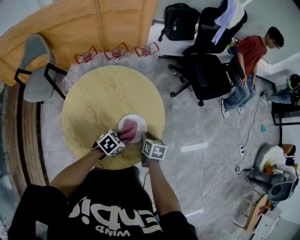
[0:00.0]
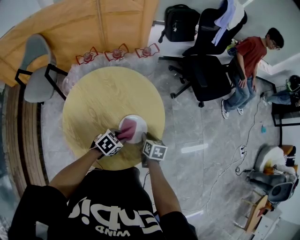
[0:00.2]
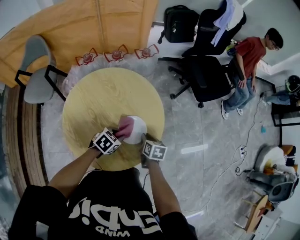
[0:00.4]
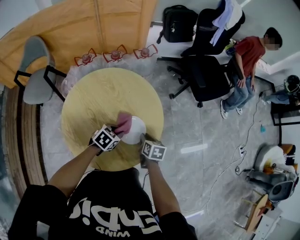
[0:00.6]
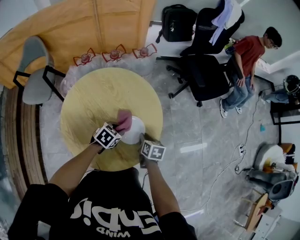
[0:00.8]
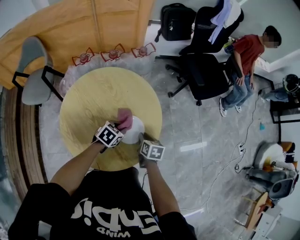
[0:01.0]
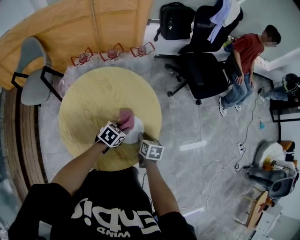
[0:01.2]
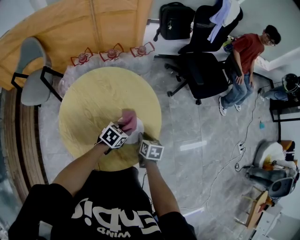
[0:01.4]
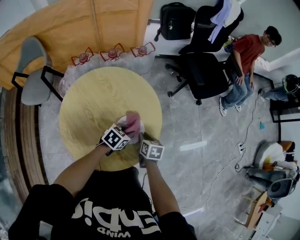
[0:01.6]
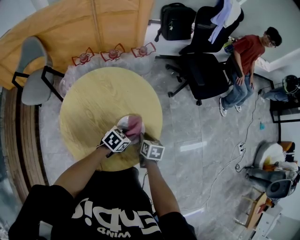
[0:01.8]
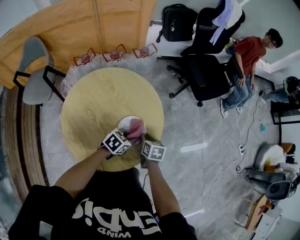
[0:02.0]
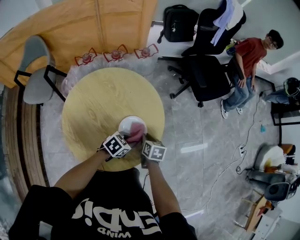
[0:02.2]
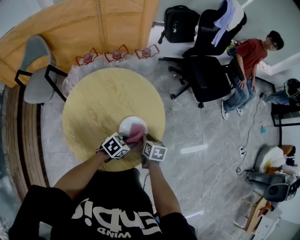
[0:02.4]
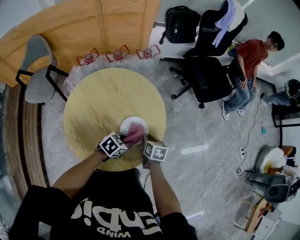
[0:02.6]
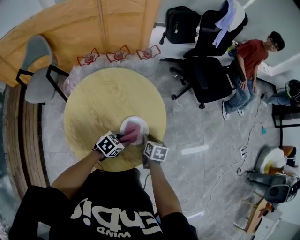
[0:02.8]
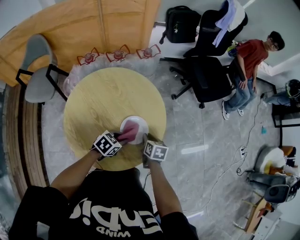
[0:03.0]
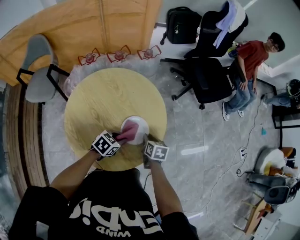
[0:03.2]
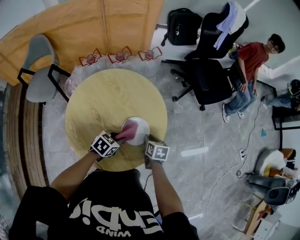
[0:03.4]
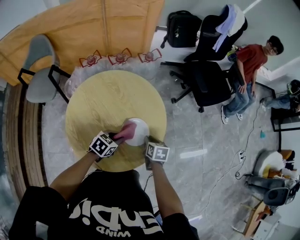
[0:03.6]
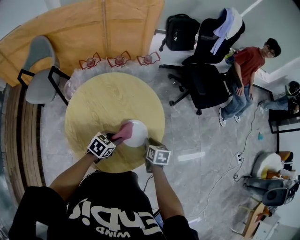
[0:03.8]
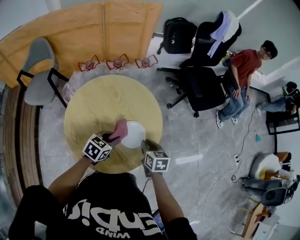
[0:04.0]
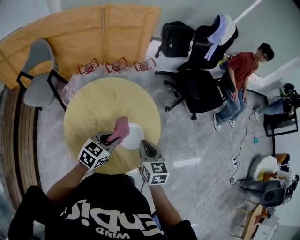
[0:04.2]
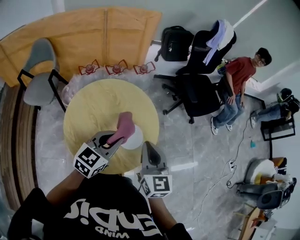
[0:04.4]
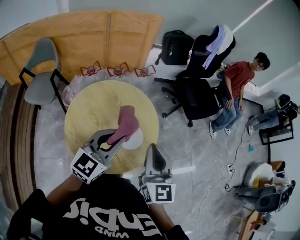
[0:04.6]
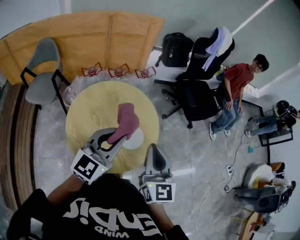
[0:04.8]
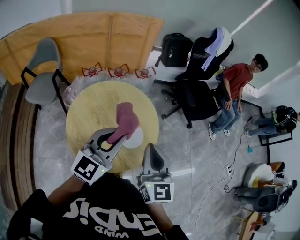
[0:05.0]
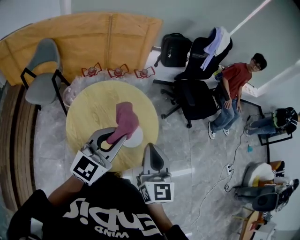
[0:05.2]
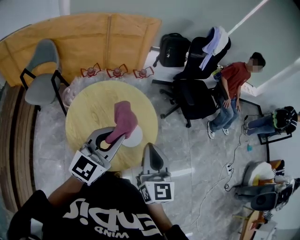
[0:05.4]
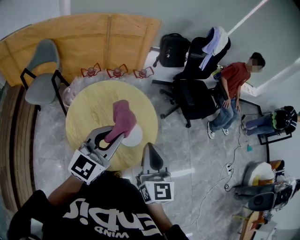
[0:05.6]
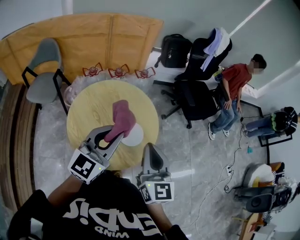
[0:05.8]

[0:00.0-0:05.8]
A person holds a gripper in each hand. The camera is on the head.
0:00.0 to 0:01.4: The left gripper shifts roughly 5 cm forward.
0:01.4 to 0:02.8: The left gripper travels backward by approximately 5 cm.
0:02.8 to 0:04.4: The two grippers go approximately 25 cm upward. The left gripper turns by some 40 degrees. The right gripper tilts its fingers some 40 degrees upward.
0:04.4 to 0:05.8: The right gripper heads upward and backward, covering roughly 10 cm. Meanwhile the left gripper travels upward by some 10 cm, and changes its angle by approximately 20 degrees.

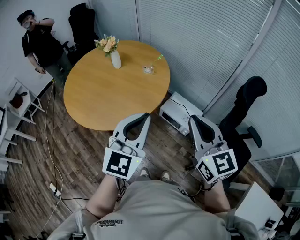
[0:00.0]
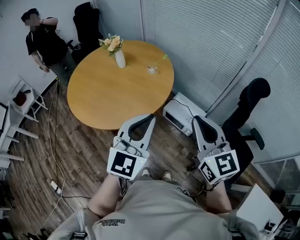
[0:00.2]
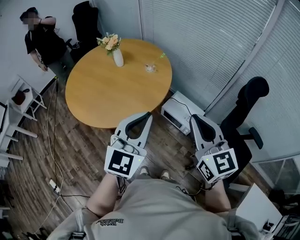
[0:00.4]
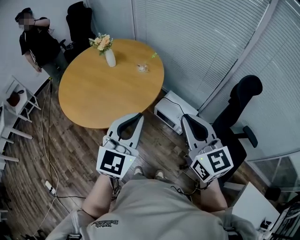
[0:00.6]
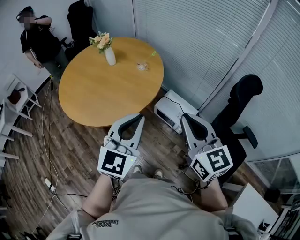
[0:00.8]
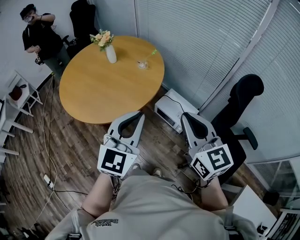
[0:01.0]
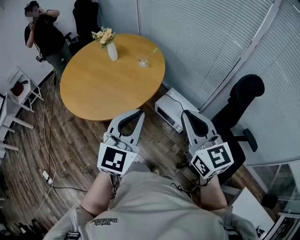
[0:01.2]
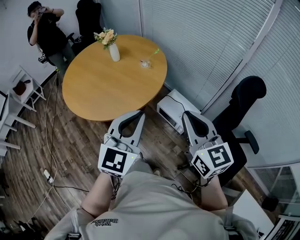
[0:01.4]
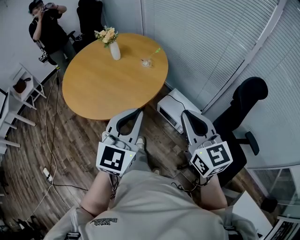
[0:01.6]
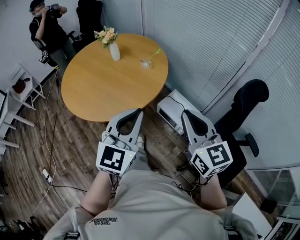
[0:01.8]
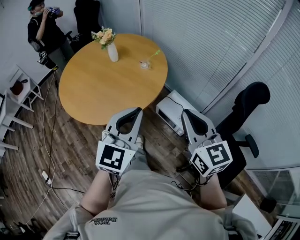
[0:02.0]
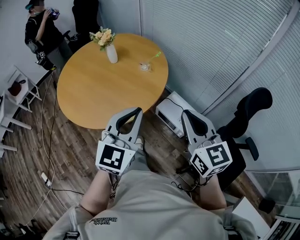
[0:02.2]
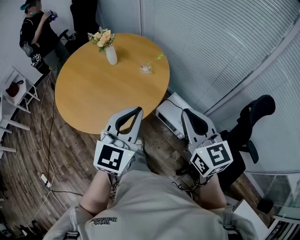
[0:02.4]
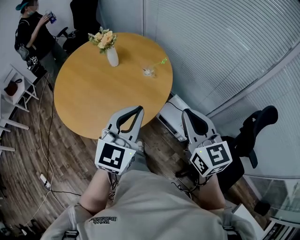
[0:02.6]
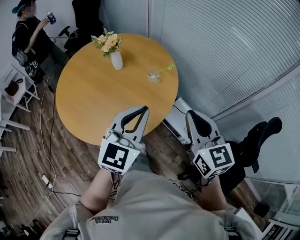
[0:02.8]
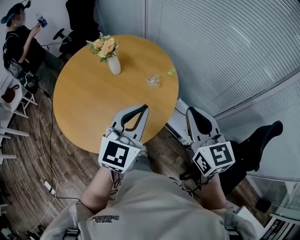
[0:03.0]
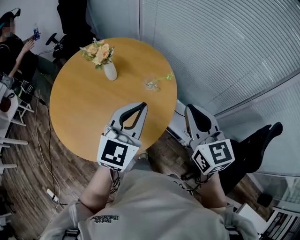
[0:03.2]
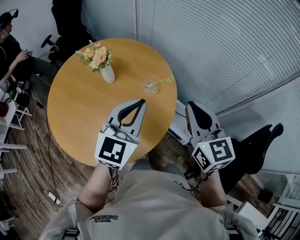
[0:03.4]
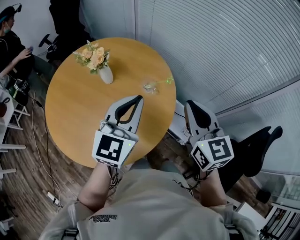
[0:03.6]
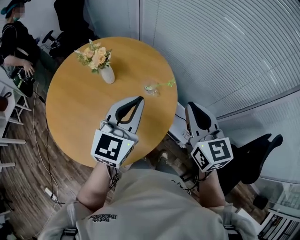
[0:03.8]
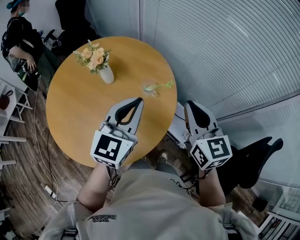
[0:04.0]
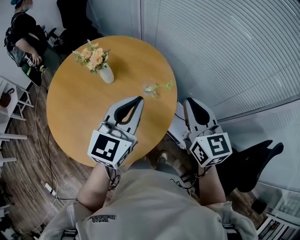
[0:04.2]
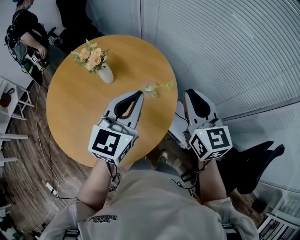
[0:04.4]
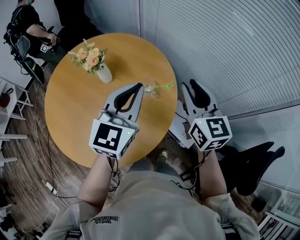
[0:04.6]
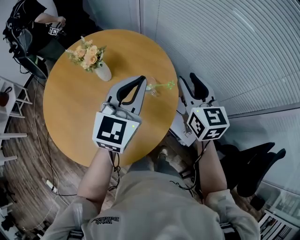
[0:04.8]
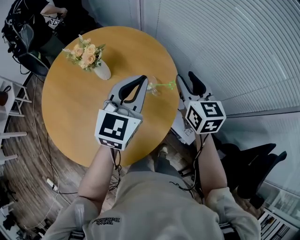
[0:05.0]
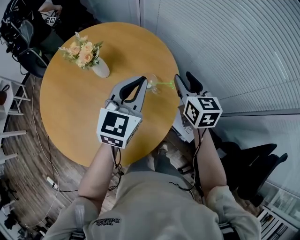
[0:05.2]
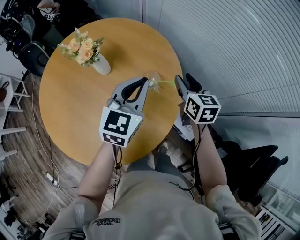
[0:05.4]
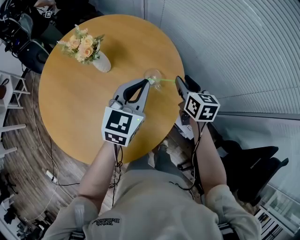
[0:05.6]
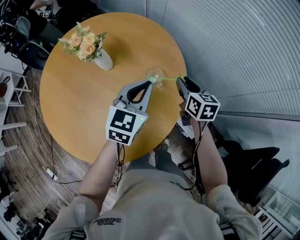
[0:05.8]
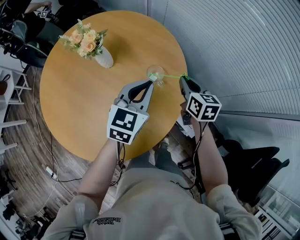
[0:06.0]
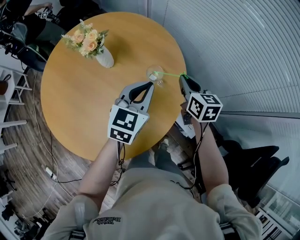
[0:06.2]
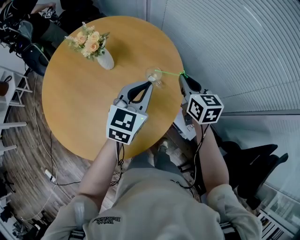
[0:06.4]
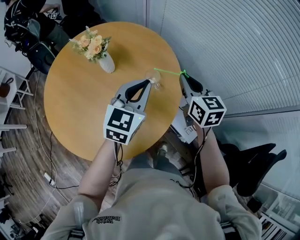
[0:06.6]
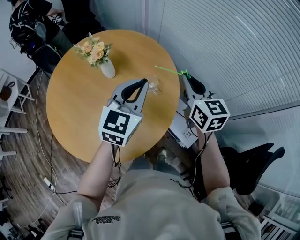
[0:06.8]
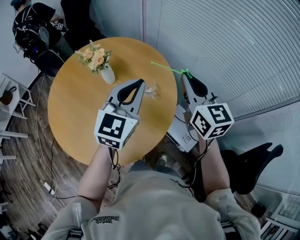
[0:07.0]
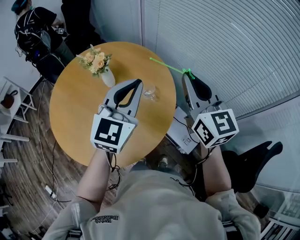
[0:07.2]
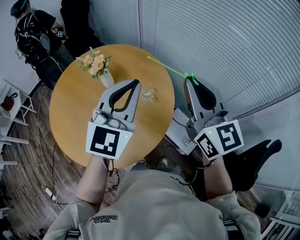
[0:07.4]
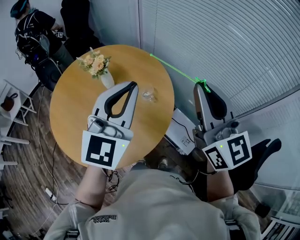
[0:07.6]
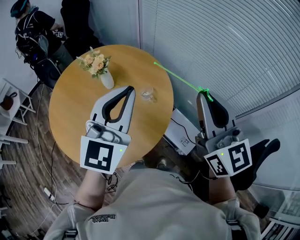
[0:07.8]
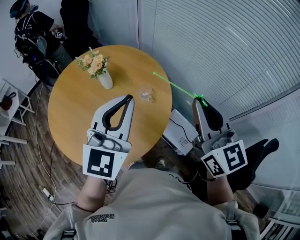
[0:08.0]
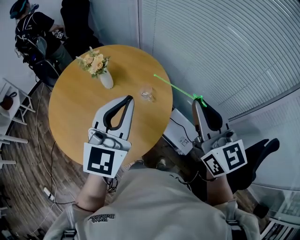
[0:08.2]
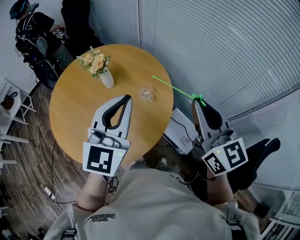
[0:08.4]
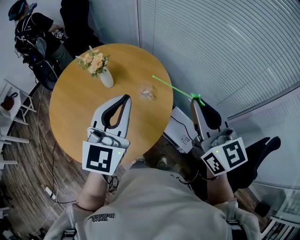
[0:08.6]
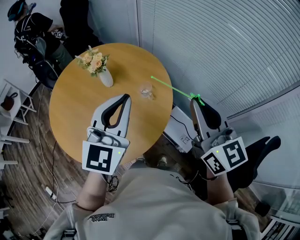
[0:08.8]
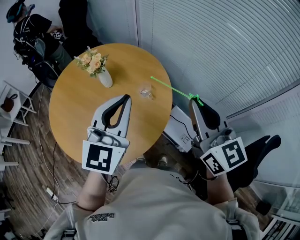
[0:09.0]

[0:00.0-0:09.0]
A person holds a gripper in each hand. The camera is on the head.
0:00.0 to 0:01.6: Both grippers move to the right, about 5 cm.
0:01.6 to 0:03.0: The two grippers go approximately 25 cm forward.
0:03.0 to 0:04.4: The two grippers go some 15 cm forward.
0:04.4 to 0:06.0: The two grippers go about 20 cm downward and forward. The right gripper rotates roughly 30 degrees, and opens, then closes once more.
0:06.0 to 0:07.6: The grippers both shift upward and backward by approximately 35 cm. The left gripper swivels approximately 30 degrees. The right gripper tilts its fingers approximately 40 degrees upward.
0:07.6 to 0:09.0: The right gripper shifts some 5 cm downward.

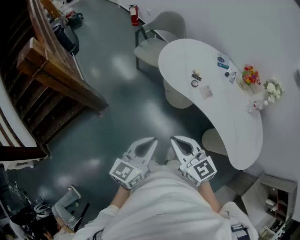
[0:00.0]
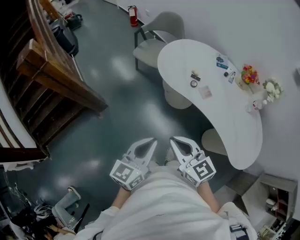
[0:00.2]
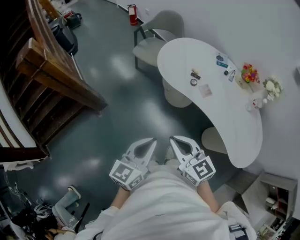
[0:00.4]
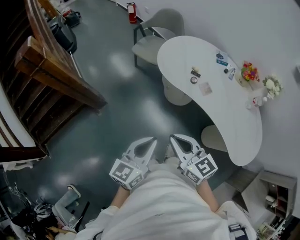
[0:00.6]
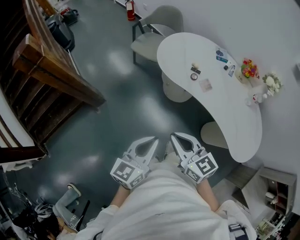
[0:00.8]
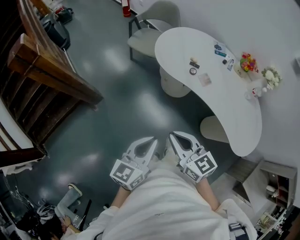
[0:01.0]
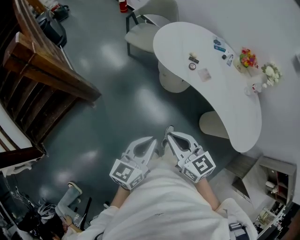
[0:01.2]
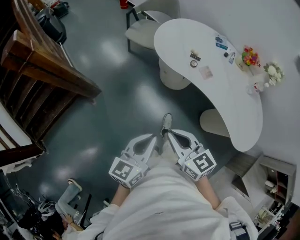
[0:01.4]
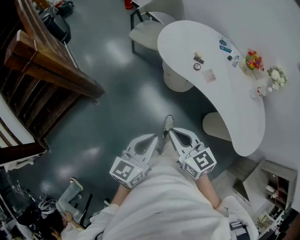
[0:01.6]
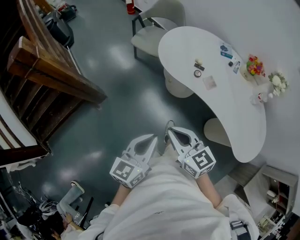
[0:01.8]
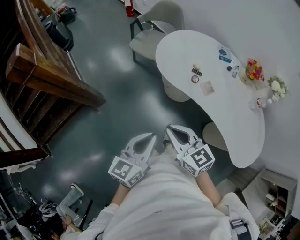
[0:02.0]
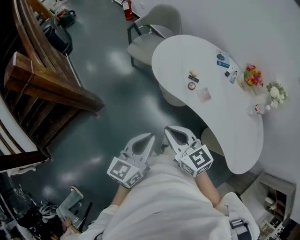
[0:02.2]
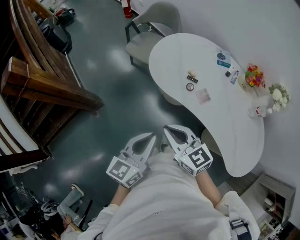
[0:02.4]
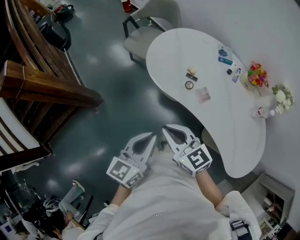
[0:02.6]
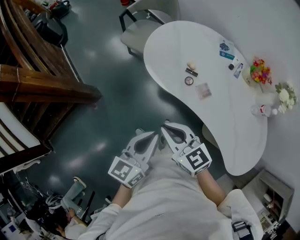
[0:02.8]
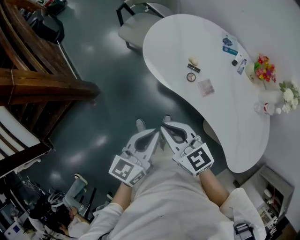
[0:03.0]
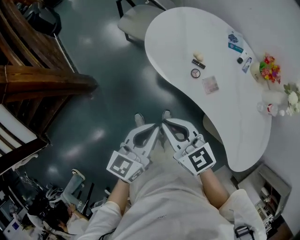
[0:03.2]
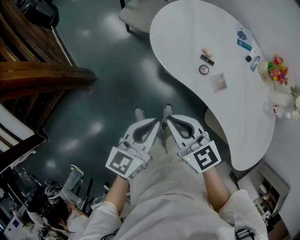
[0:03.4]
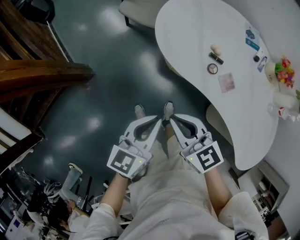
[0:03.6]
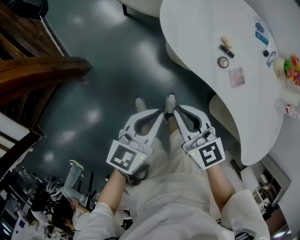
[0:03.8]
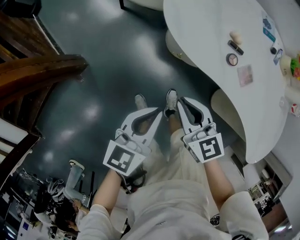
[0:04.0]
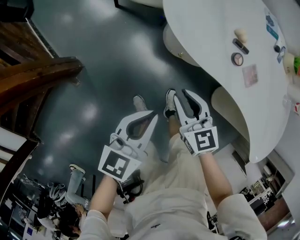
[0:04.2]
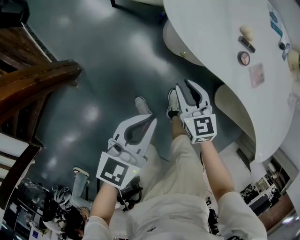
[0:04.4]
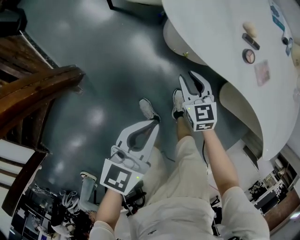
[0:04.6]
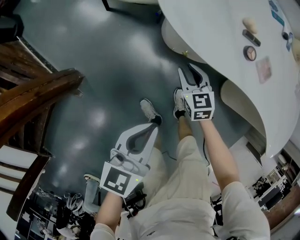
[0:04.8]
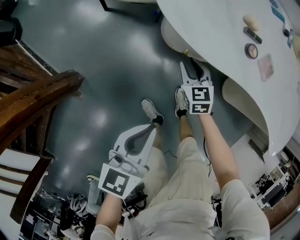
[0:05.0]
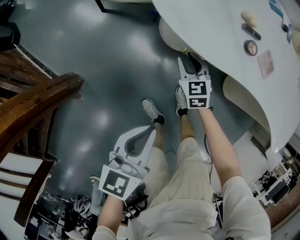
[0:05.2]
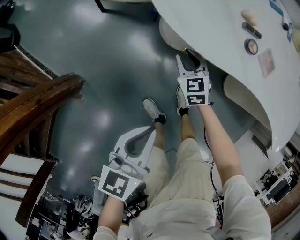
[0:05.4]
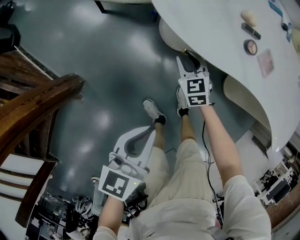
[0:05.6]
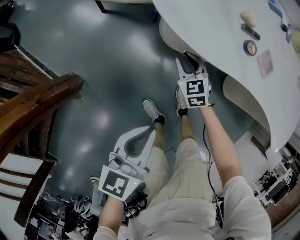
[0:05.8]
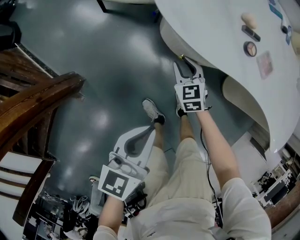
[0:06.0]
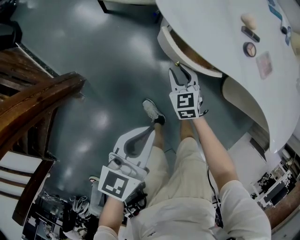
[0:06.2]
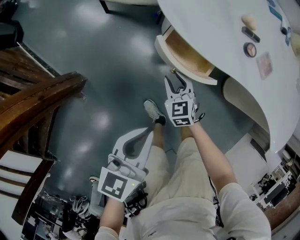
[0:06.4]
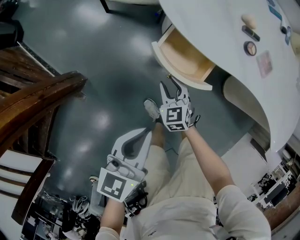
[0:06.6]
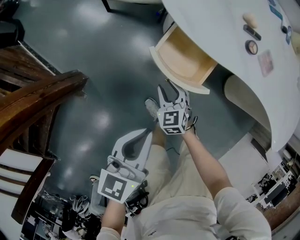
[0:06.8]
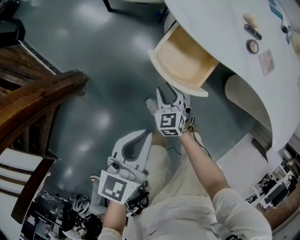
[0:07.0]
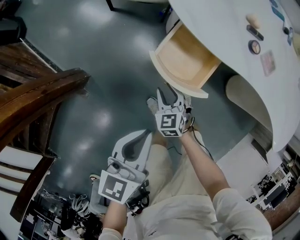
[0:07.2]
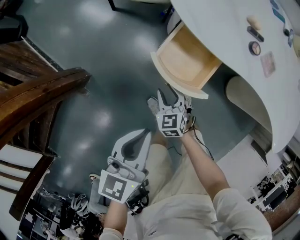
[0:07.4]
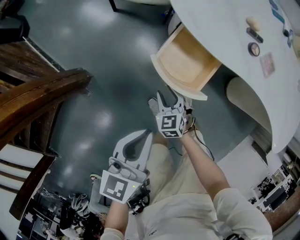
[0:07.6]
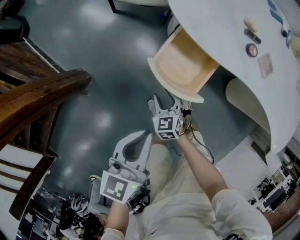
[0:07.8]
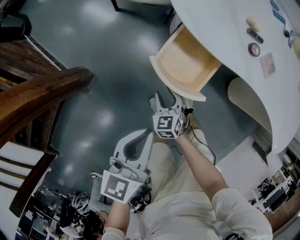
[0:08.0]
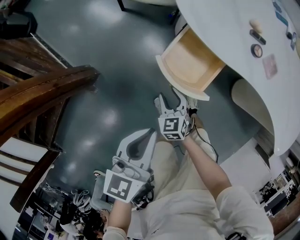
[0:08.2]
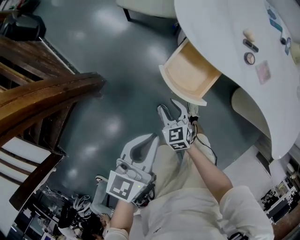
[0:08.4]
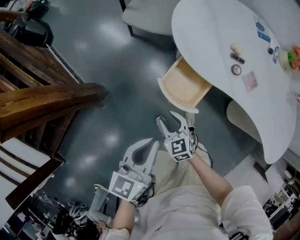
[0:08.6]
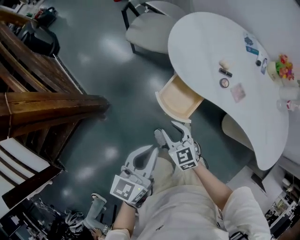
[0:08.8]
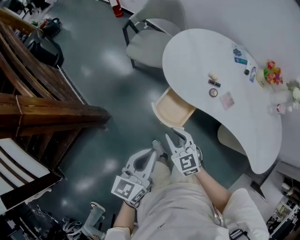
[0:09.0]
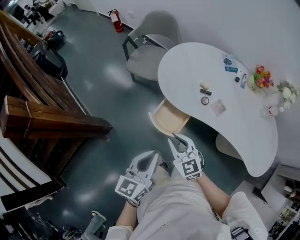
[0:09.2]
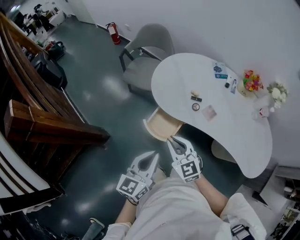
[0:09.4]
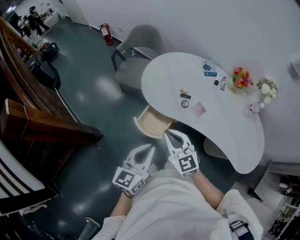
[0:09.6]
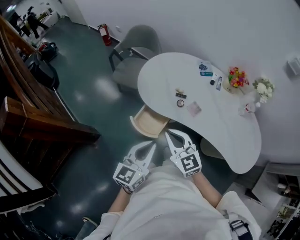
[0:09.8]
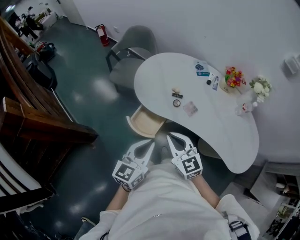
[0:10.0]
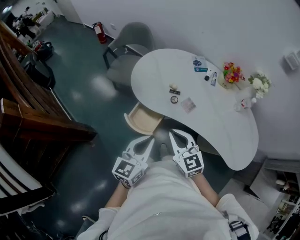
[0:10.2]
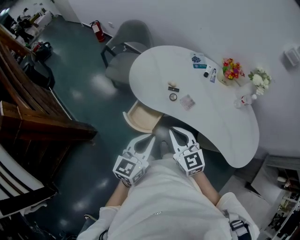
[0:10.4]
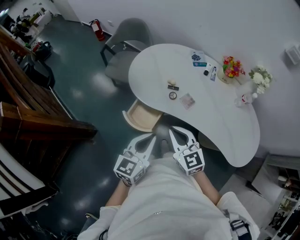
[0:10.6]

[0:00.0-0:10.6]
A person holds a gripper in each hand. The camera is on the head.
0:00.0 to 0:01.6: The right gripper changes place by some 5 cm.
0:01.6 to 0:03.0: The grippers both shift forward and to the right by approximately 20 cm.
0:03.0 to 0:04.6: The right gripper moves downward, some 40 cm, and swivels roughly 30 degrees. Meanwhile the left gripper goes some 30 cm downward and to the left.
0:04.6 to 0:06.0: The right gripper shifts some 5 cm downward.
0:06.0 to 0:07.6: The left gripper shifts by some 5 cm; the right gripper travels backward and to the left by approximately 15 cm.
0:07.6 to 0:09.0: The right gripper shifts roughly 30 cm upward, and turns by some 20 degrees. The left gripper shifts about 20 cm upward.
0:09.0 to 0:10.6: The right gripper moves to the right and upward, roughly 25 cm. Meanwhile the left gripper is displaced to the right by approximately 20 cm.
